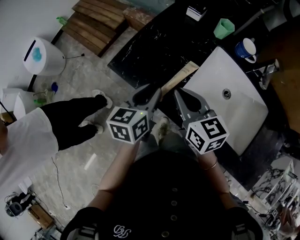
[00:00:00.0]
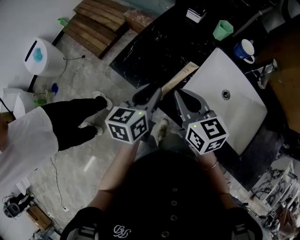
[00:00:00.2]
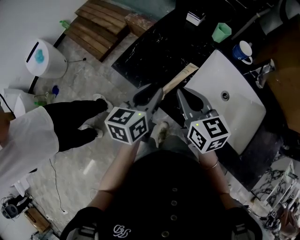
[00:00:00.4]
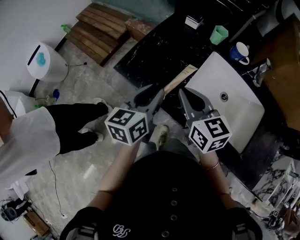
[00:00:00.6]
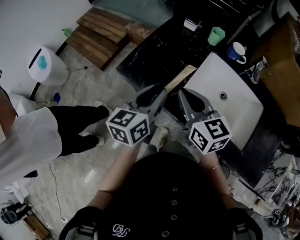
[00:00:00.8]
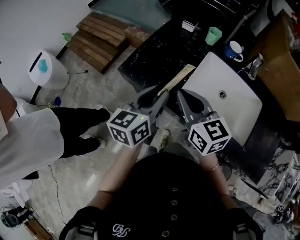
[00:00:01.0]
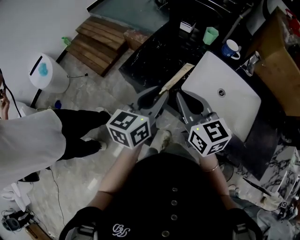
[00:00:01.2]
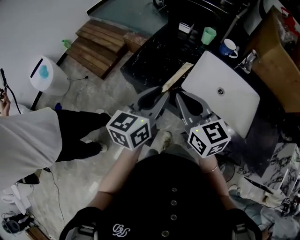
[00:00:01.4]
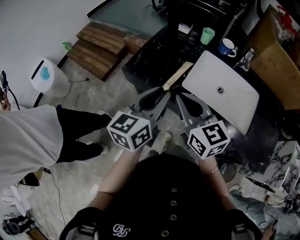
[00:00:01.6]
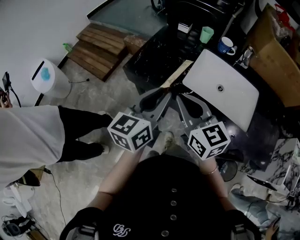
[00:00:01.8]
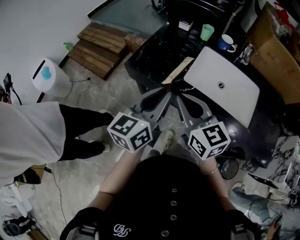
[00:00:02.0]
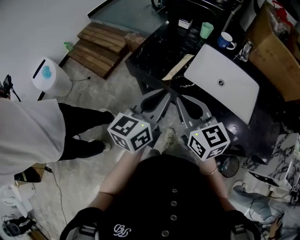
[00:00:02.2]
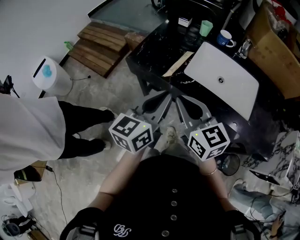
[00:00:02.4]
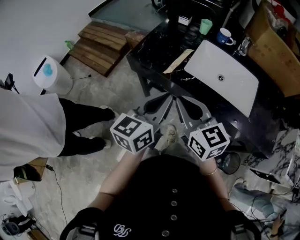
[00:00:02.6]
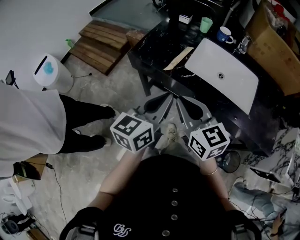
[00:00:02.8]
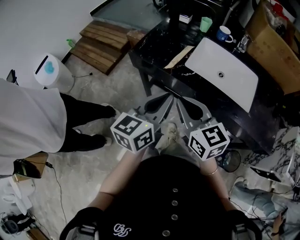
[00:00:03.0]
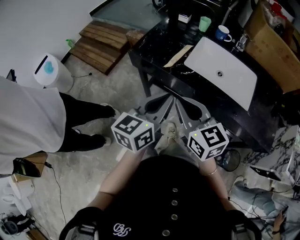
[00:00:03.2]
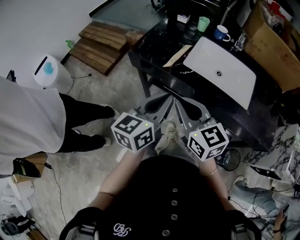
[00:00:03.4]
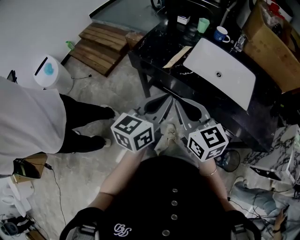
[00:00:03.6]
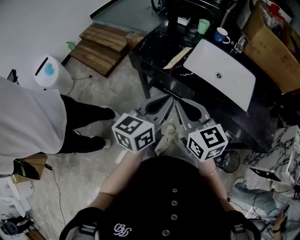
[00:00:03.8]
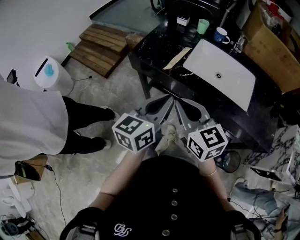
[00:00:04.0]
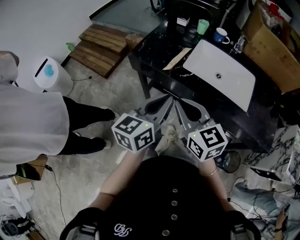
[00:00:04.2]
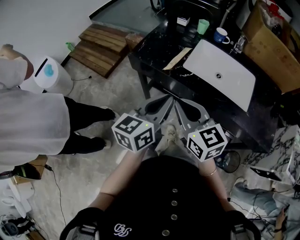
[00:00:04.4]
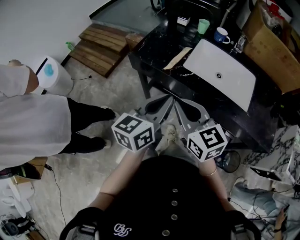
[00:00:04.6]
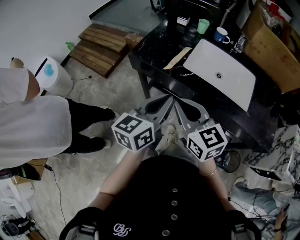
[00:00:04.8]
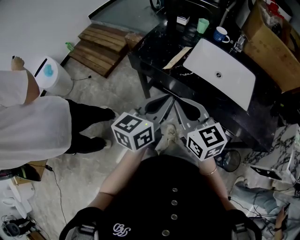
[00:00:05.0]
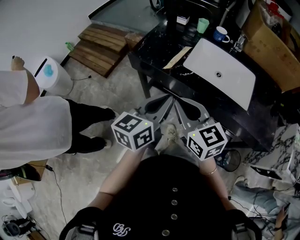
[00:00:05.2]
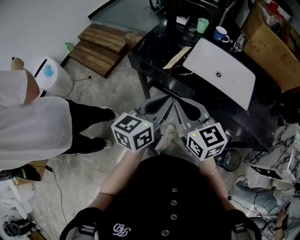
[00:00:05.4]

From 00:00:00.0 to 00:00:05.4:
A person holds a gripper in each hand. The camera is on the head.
From 00:00:00.0 to 00:00:01.4: The left gripper shifts approximately 15 cm upward and backward, and rotates roughly 20 degrees, while the right gripper goes approximately 15 cm backward and upward.
From 00:00:01.4 to 00:00:02.8: The two grippers go about 15 cm backward.
From 00:00:02.8 to 00:00:04.0: There are only small adjustments of the grippers.
From 00:00:04.0 to 00:00:05.4: The two grippers keep their place.

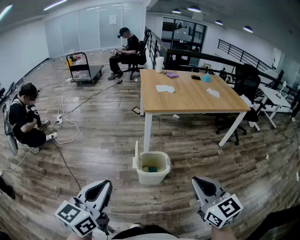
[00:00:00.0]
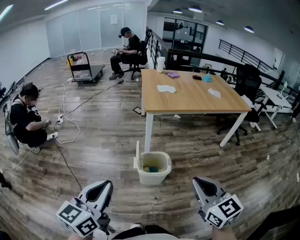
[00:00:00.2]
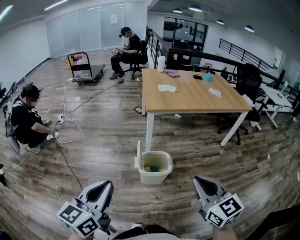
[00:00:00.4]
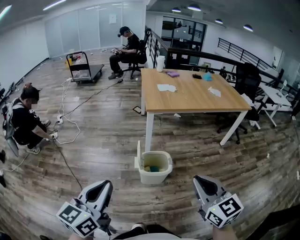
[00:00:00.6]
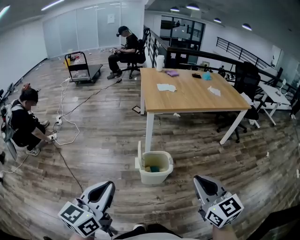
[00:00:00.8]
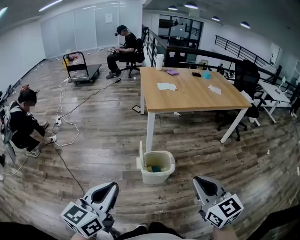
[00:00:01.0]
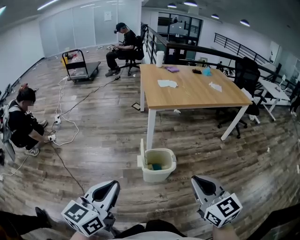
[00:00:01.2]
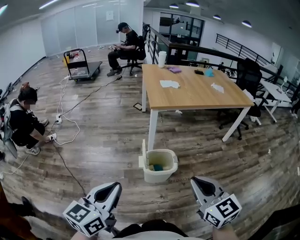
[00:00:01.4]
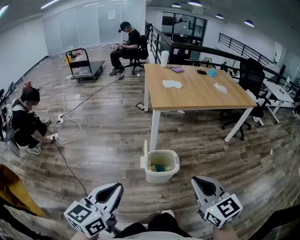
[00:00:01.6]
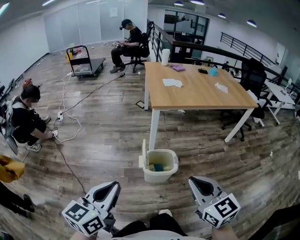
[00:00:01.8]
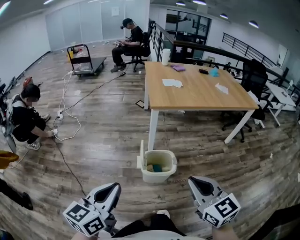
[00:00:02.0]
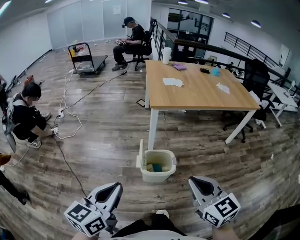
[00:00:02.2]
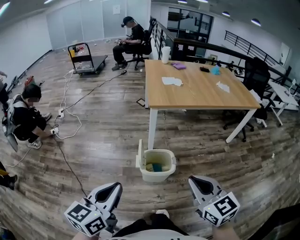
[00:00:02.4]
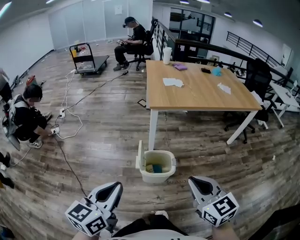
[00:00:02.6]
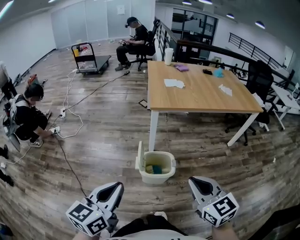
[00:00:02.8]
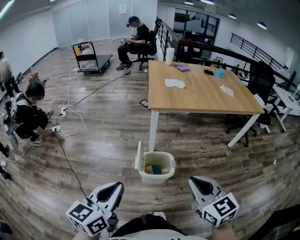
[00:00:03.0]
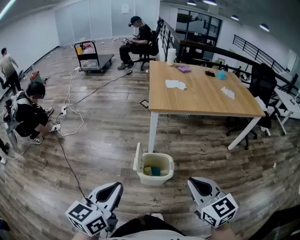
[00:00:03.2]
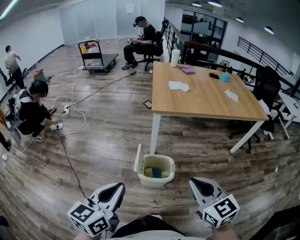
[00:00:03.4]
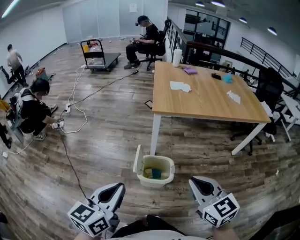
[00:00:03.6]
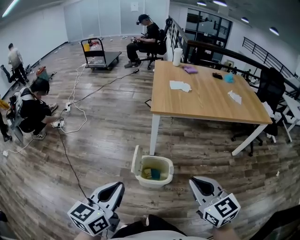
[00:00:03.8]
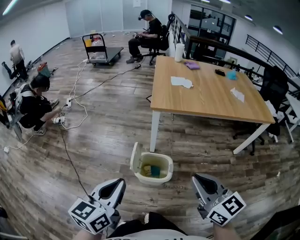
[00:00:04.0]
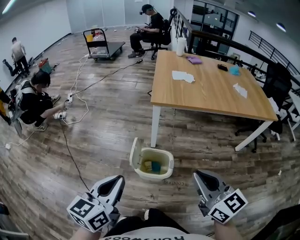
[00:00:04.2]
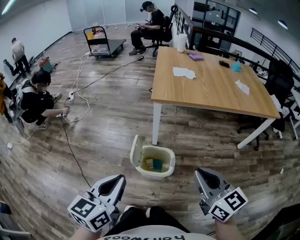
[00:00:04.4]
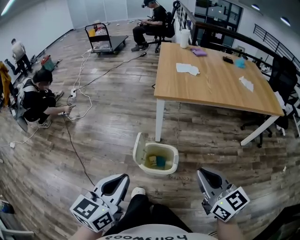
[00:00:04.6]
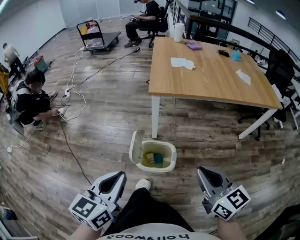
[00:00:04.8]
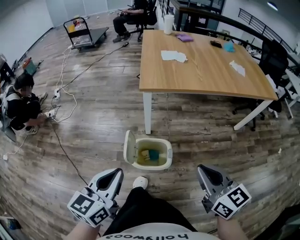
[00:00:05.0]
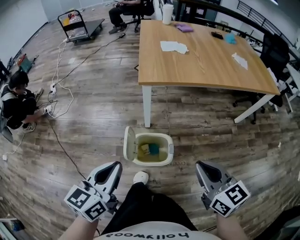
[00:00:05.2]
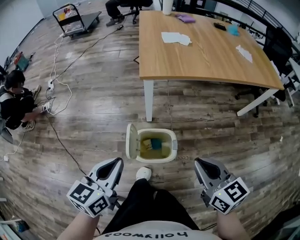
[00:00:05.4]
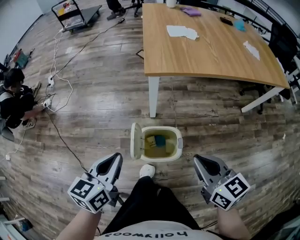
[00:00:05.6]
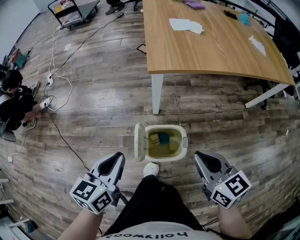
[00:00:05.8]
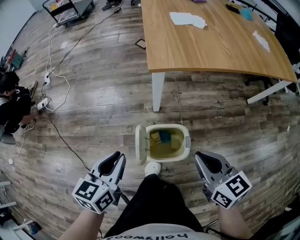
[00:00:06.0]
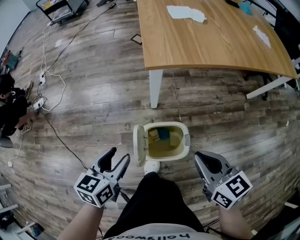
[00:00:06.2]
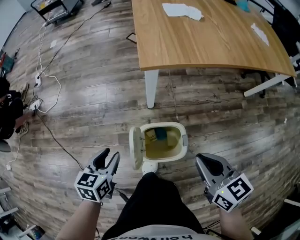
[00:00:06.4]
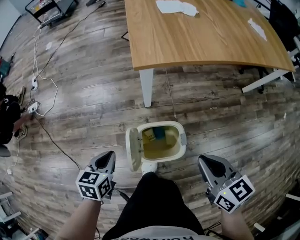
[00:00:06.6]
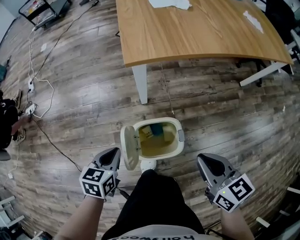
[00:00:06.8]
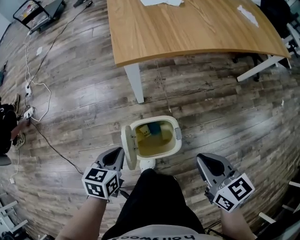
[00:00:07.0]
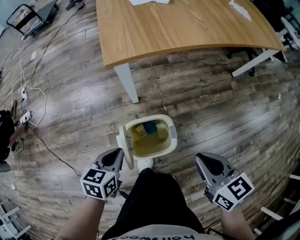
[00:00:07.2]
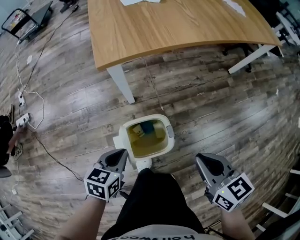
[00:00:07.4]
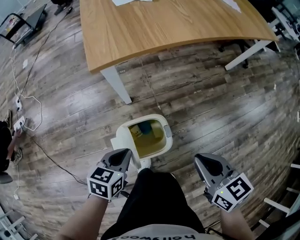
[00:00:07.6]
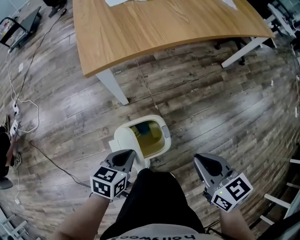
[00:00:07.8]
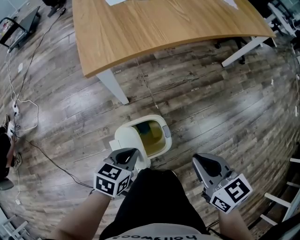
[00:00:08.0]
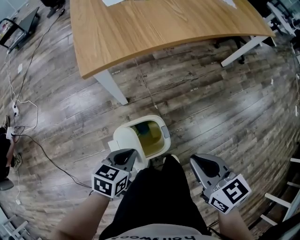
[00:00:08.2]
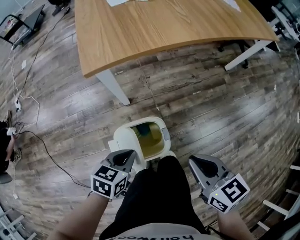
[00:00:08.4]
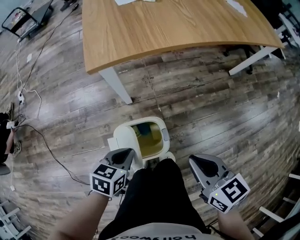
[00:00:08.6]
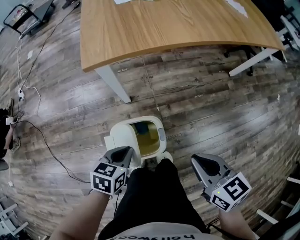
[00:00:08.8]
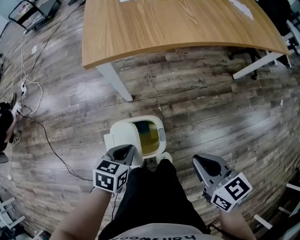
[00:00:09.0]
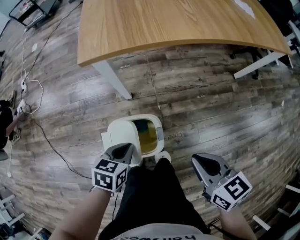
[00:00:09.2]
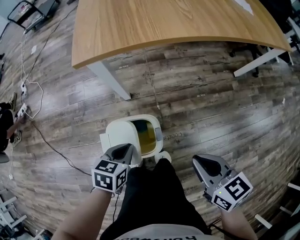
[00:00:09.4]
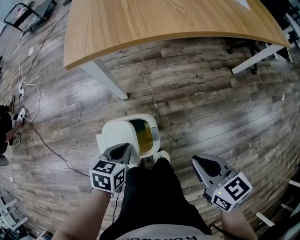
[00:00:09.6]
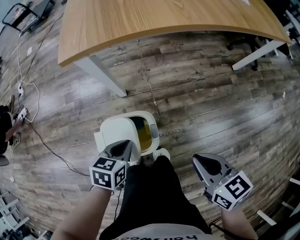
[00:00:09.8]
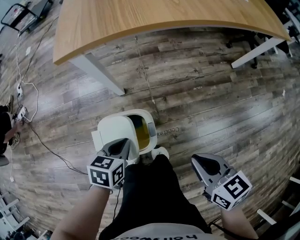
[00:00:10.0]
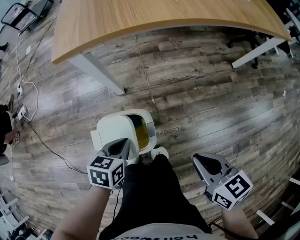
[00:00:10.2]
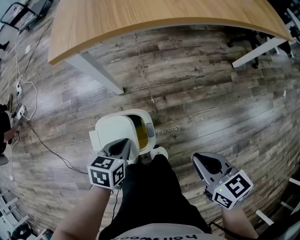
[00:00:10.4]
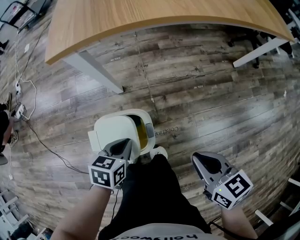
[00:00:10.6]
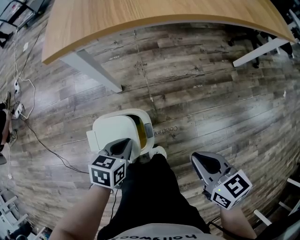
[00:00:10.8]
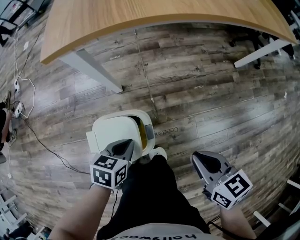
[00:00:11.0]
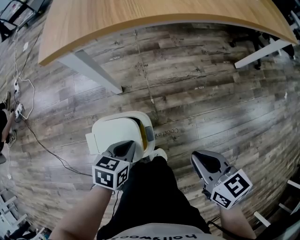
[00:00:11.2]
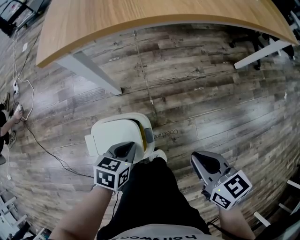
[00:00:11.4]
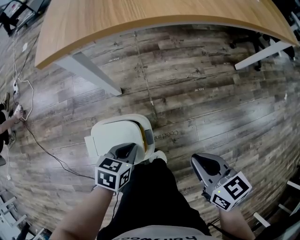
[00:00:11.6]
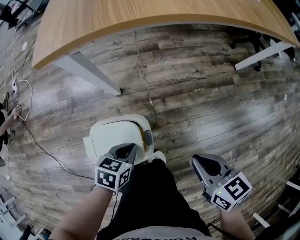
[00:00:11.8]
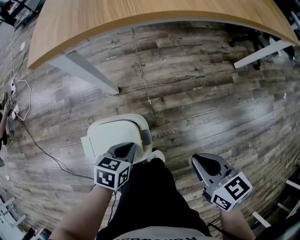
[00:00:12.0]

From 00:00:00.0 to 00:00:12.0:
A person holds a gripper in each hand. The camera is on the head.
From 00:00:00.0 to 00:00:01.6: The left gripper changes place by roughly 5 cm; the right gripper moves to the left, approximately 5 cm.
From 00:00:01.6 to 00:00:03.0: The left gripper moves to the right, roughly 5 cm, while the right gripper heads to the right and forward, covering approximately 10 cm.
From 00:00:03.0 to 00:00:04.4: The left gripper goes roughly 10 cm to the right and forward. The right gripper is displaced forward and to the right by roughly 10 cm.
From 00:00:04.4 to 00:00:06.0: The right gripper is displaced downward and forward by approximately 20 cm, and changes its angle by roughly 20 degrees. Meanwhile the left gripper heads forward and downward, covering some 25 cm.
From 00:00:06.0 to 00:00:07.6: The right gripper shifts roughly 10 cm to the right, while the left gripper moves downward and to the right, about 20 cm, swivels some 30 degrees, and opens, then closes again.
From 00:00:07.6 to 00:00:09.0: The left gripper goes about 5 cm to the right; the right gripper moves some 5 cm.
From 00:00:09.0 to 00:00:10.4: The left gripper heads to the right, covering approximately 5 cm. Meanwhile the right gripper moves to the right and downward, approximately 10 cm.
From 00:00:10.4 to 00:00:12.0: The right gripper moves roughly 5 cm; the left gripper moves downward, approximately 5 cm.

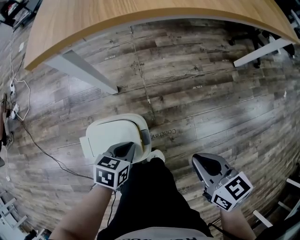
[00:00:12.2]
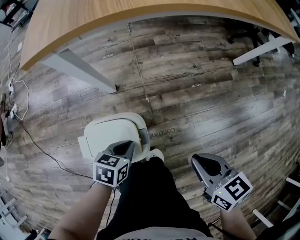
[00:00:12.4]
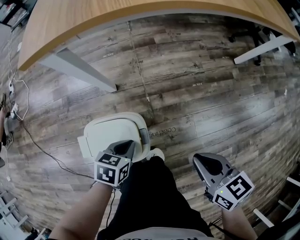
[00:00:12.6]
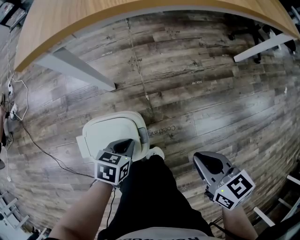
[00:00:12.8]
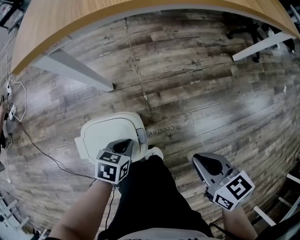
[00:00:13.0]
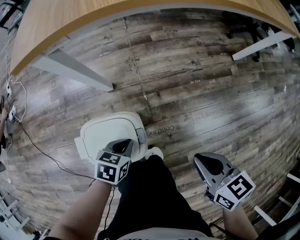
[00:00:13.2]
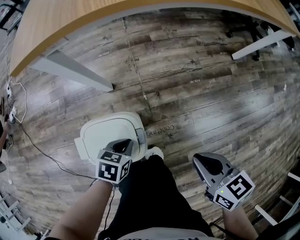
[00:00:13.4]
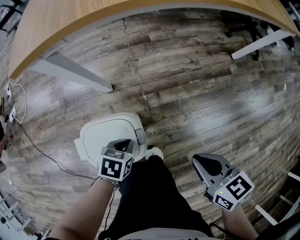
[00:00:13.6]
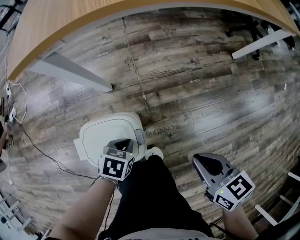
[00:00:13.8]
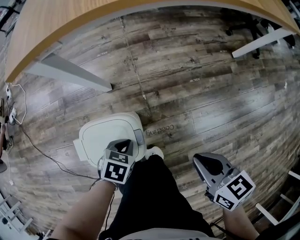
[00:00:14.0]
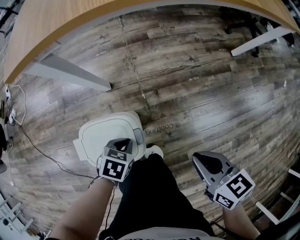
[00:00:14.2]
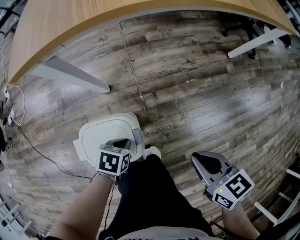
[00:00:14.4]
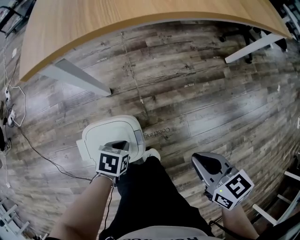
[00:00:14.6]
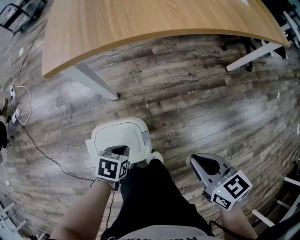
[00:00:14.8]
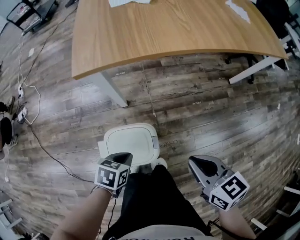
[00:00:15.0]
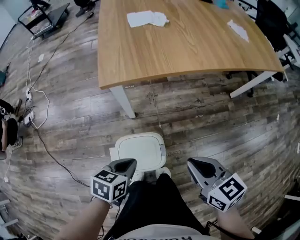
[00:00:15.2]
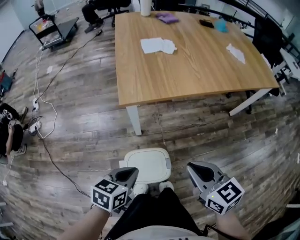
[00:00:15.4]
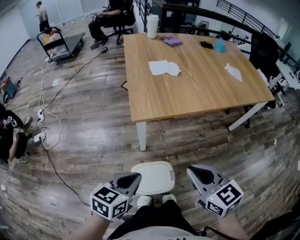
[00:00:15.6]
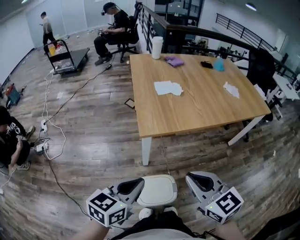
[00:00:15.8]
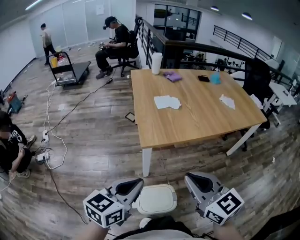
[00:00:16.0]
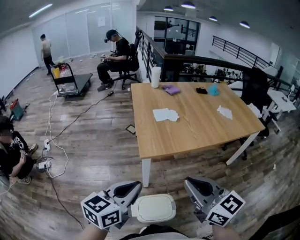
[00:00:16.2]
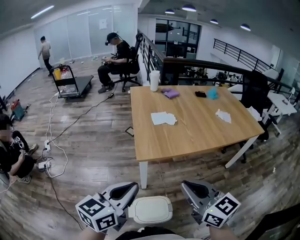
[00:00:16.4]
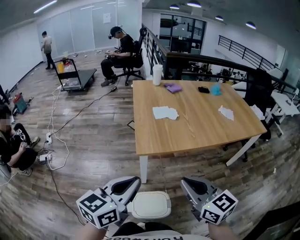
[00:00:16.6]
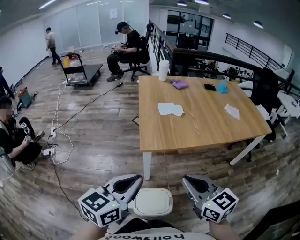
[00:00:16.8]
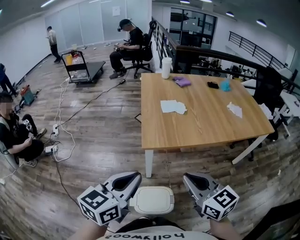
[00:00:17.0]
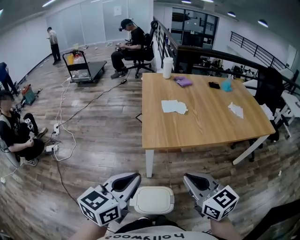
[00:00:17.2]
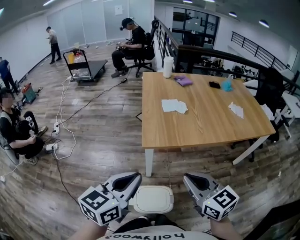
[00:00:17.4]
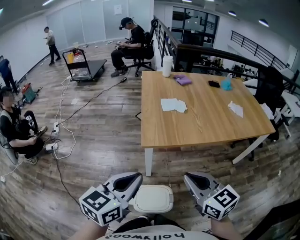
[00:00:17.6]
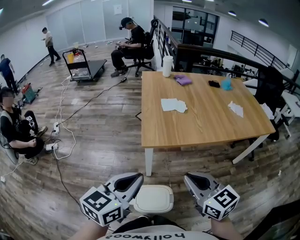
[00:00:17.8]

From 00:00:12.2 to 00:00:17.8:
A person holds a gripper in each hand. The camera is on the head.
From 00:00:12.2 to 00:00:13.6: The grippers make only small movements.
From 00:00:13.6 to 00:00:15.0: The grippers both shift upward and to the left by approximately 15 cm.
From 00:00:15.0 to 00:00:16.4: The right gripper moves upward and to the left, roughly 35 cm, and rotates roughly 30 degrees. Meanwhile the left gripper is displaced upward by approximately 50 cm, and tilts its fingers about 50 degrees upward.
From 00:00:16.4 to 00:00:17.8: The right gripper ends up roughly 5 cm from where it was.
